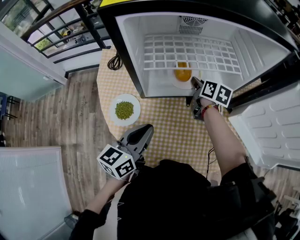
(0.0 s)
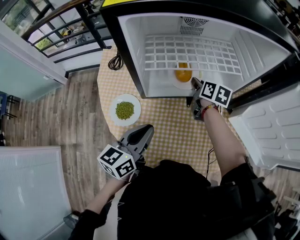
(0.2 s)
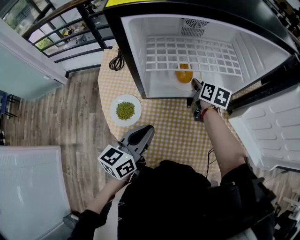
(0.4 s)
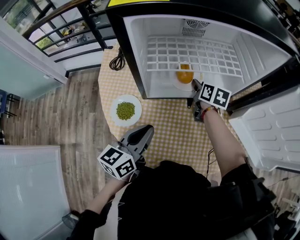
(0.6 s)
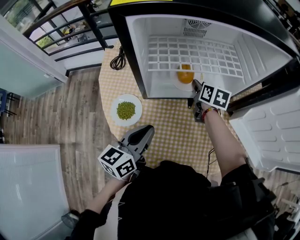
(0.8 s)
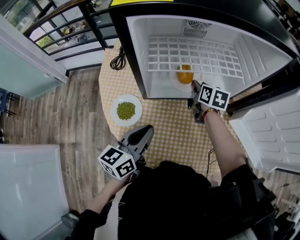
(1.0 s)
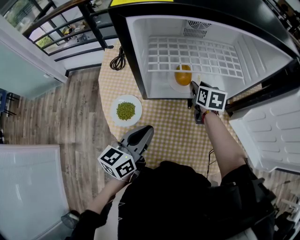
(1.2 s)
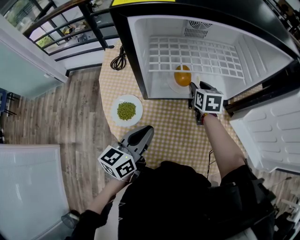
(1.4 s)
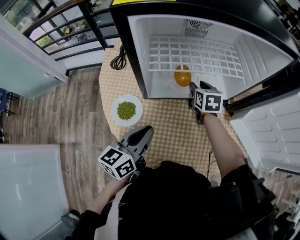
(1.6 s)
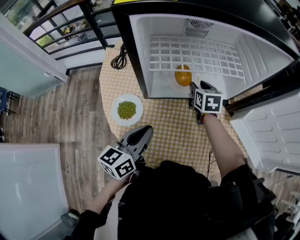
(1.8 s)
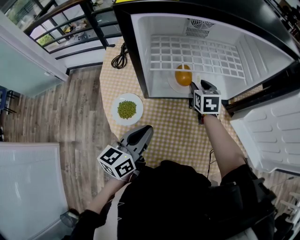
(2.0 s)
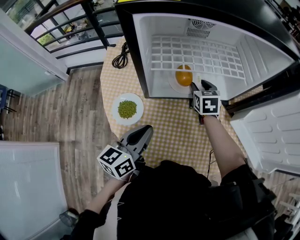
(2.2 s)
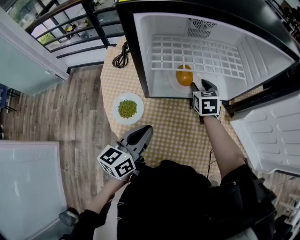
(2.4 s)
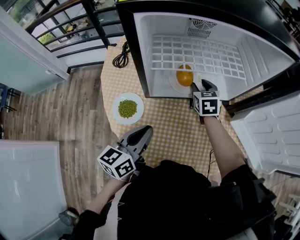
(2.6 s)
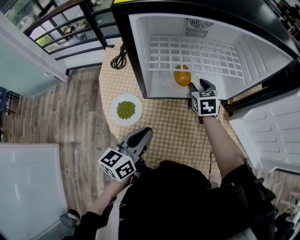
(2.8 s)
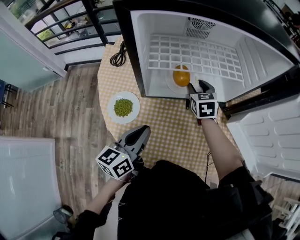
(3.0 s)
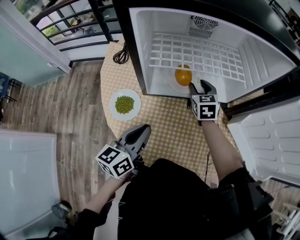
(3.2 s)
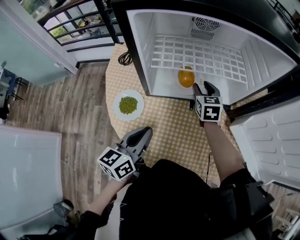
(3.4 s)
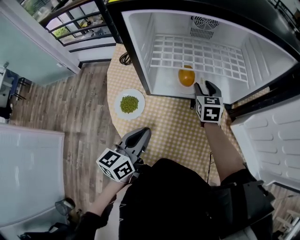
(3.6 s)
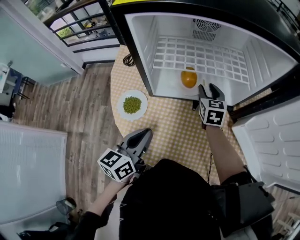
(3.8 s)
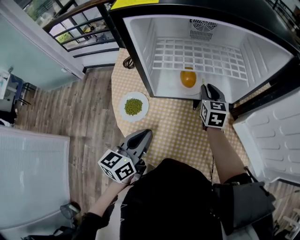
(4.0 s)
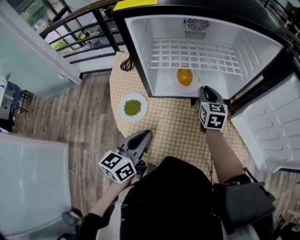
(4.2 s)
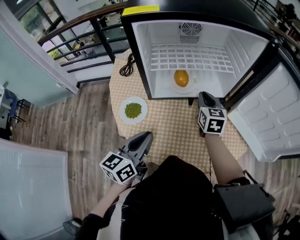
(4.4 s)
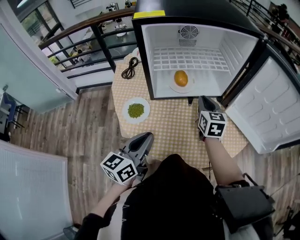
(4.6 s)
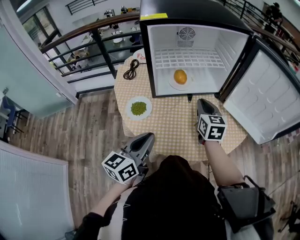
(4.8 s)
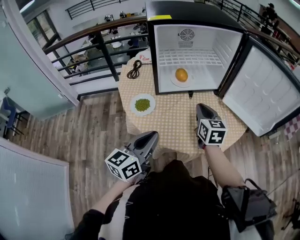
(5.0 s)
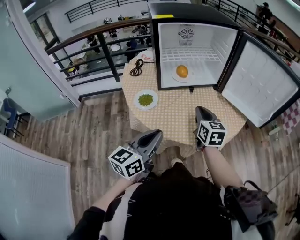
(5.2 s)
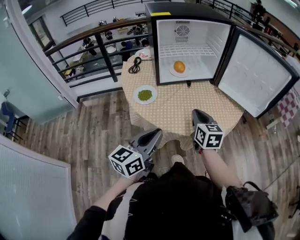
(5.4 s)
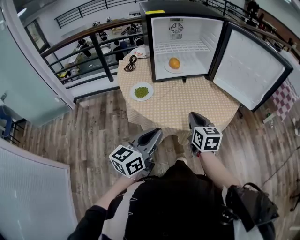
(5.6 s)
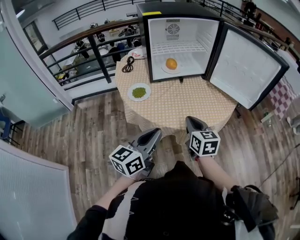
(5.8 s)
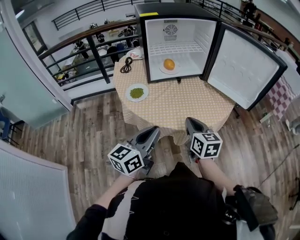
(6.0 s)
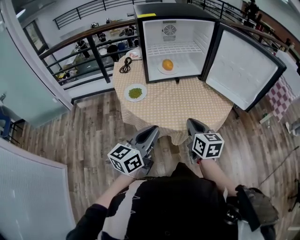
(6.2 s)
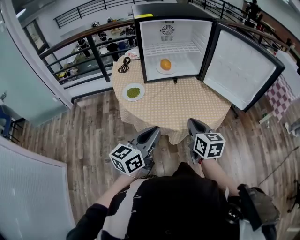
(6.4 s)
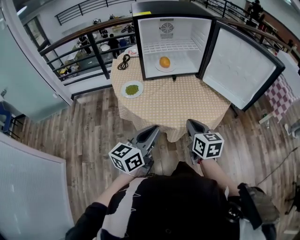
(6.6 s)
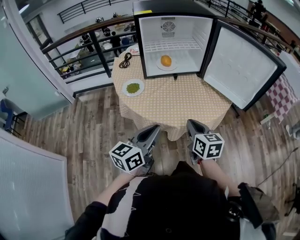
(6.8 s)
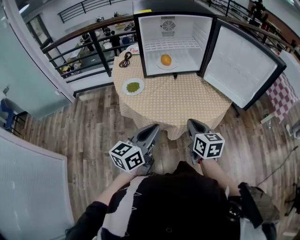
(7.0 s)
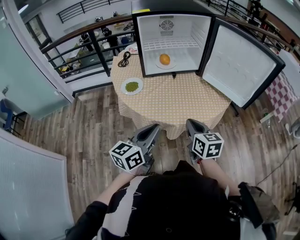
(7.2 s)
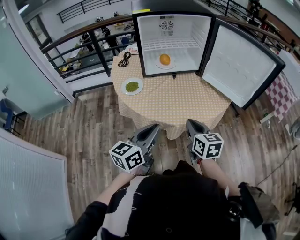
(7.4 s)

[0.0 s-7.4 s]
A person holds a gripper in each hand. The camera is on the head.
0.0 to 1.4 s: The right gripper turns by roughly 30 degrees, and opens its fingers.
1.4 to 3.0 s: The grippers stay close to where they were, moving slightly.
3.0 to 4.4 s: The right gripper heads backward and upward, covering some 10 cm, and closes its fingers. The left gripper goes roughly 5 cm backward.
4.4 to 6.0 s: The left gripper moves backward, about 20 cm, while the right gripper heads backward, covering roughly 40 cm.
6.0 to 7.4 s: The two grippers go approximately 5 cm to the right.

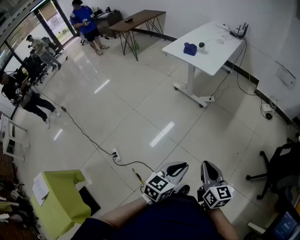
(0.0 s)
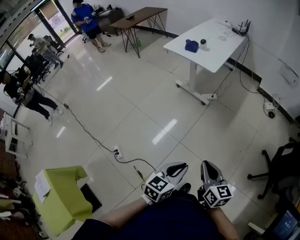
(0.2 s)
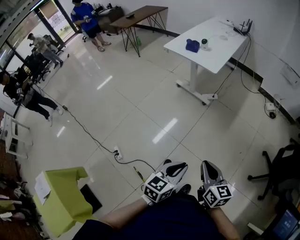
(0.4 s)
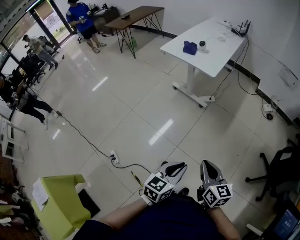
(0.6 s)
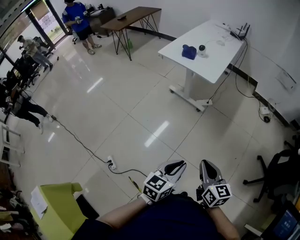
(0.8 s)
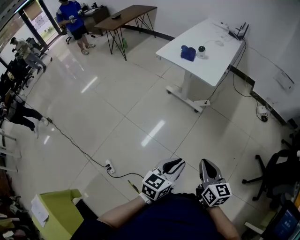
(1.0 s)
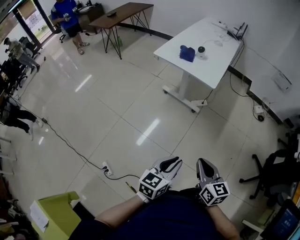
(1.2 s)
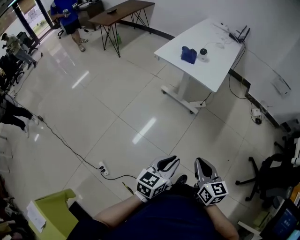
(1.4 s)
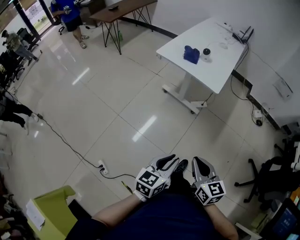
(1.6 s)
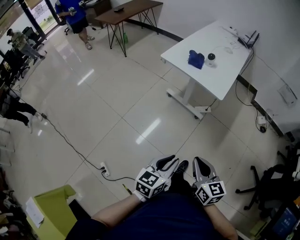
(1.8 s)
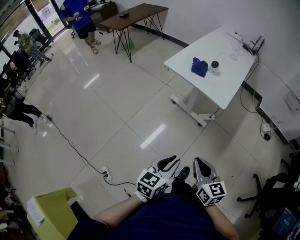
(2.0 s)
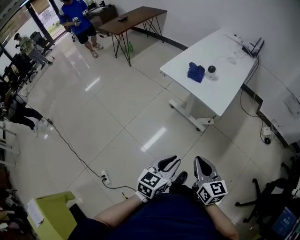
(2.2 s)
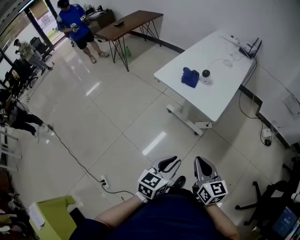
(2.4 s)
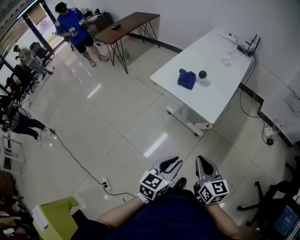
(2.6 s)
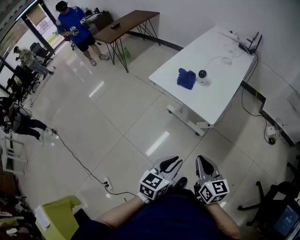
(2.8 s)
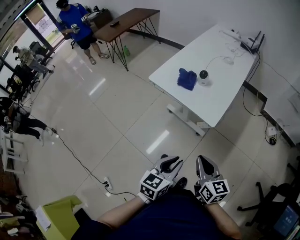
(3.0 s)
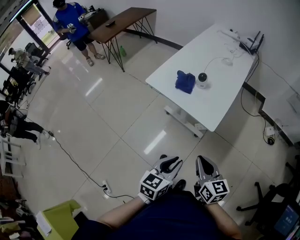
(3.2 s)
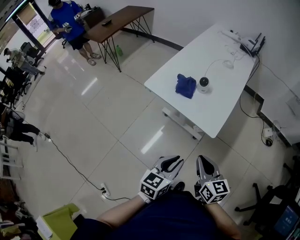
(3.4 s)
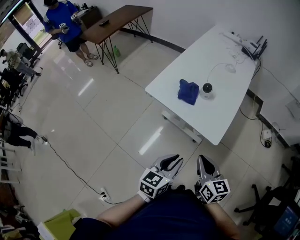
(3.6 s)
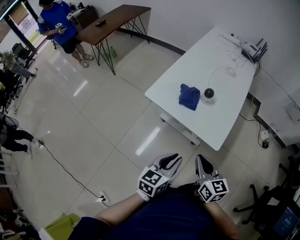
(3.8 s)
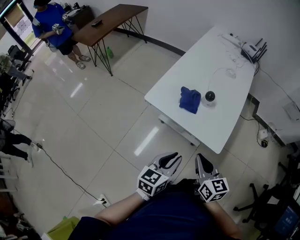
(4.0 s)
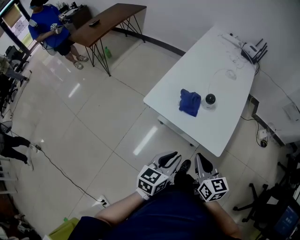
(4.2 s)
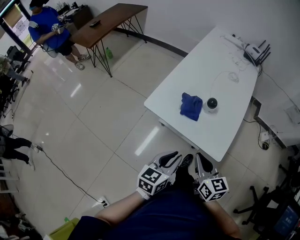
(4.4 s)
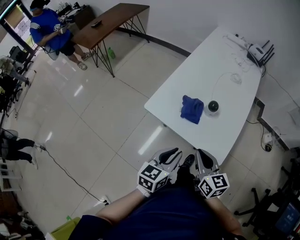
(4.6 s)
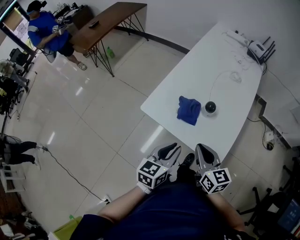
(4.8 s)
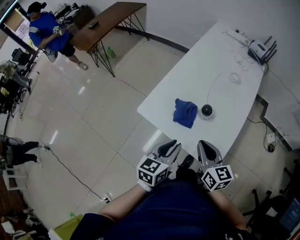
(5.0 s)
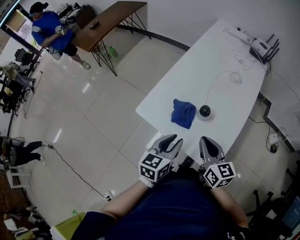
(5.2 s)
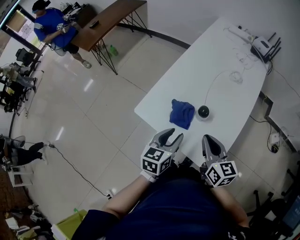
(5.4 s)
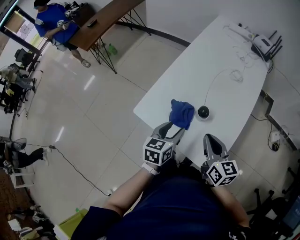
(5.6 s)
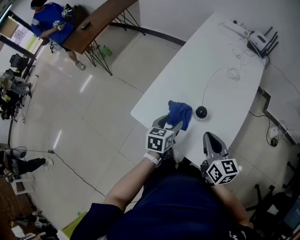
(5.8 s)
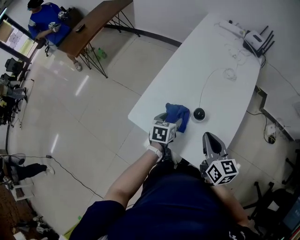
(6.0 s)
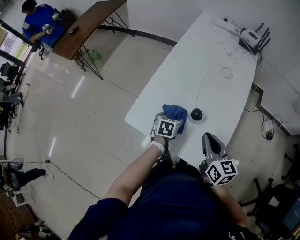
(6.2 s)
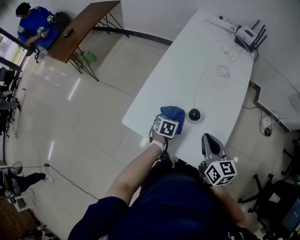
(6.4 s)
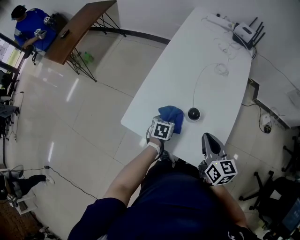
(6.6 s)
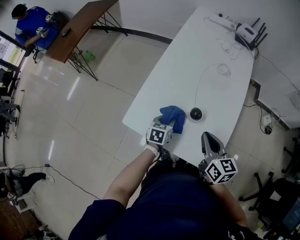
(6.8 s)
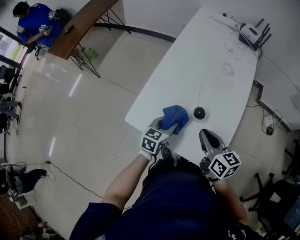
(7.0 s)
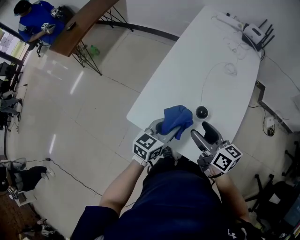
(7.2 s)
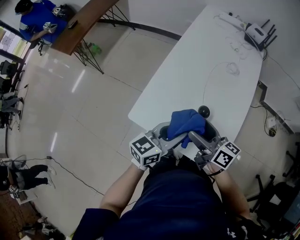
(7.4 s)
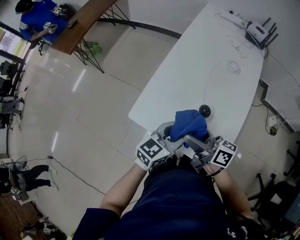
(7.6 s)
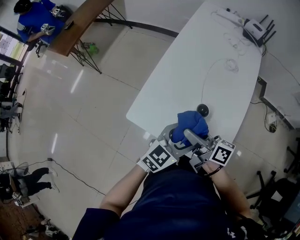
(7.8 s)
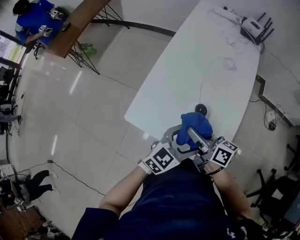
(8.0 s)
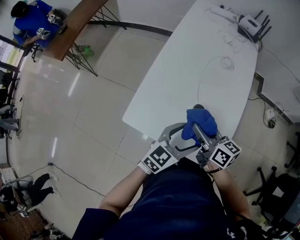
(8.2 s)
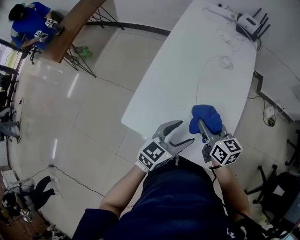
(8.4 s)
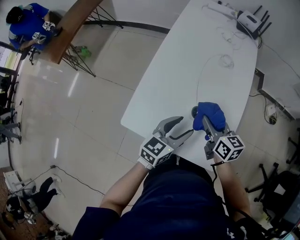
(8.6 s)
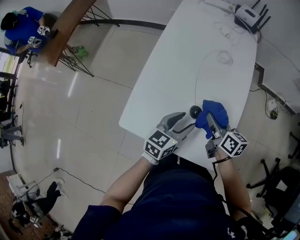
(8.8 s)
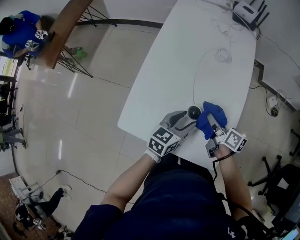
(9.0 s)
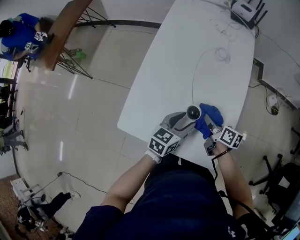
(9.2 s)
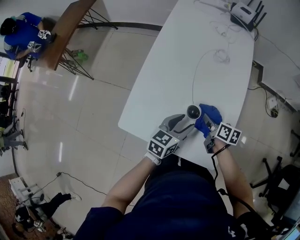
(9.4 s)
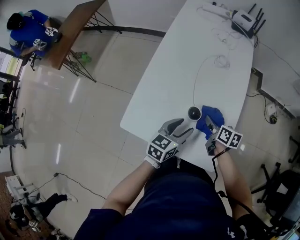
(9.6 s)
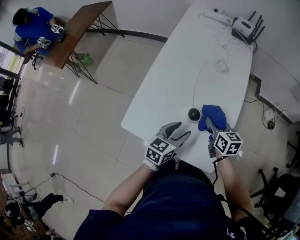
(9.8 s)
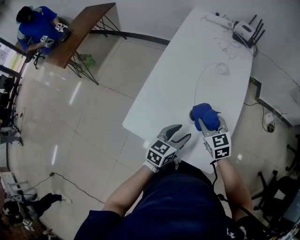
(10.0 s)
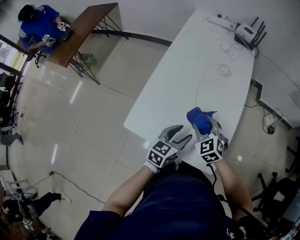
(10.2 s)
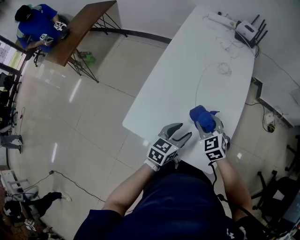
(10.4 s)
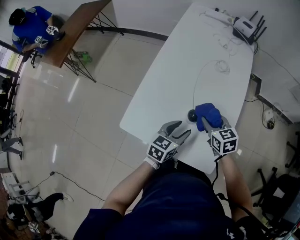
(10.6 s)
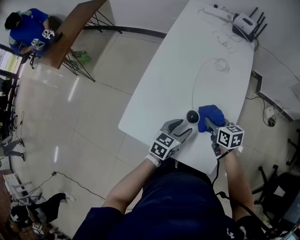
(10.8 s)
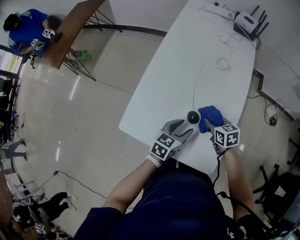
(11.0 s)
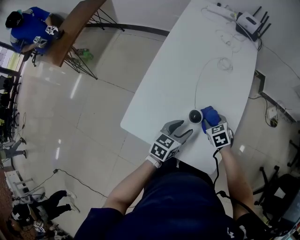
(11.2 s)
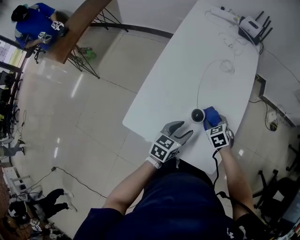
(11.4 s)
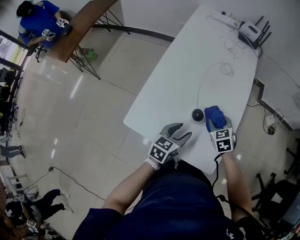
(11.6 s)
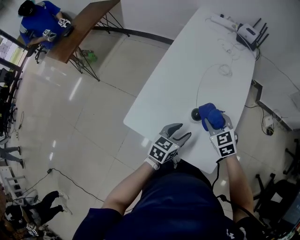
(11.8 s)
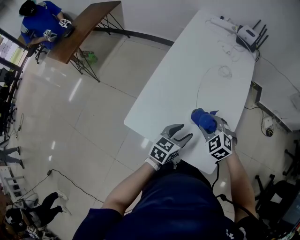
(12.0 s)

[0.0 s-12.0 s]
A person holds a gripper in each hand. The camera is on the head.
0.0 to 1.6 s: Both grippers travel together forward and to the left, approximately 25 cm.
1.6 to 3.0 s: Both grippers travel together forward, about 20 cm.
3.0 to 4.4 s: The grippers both shift forward and to the left by roughly 25 cm.
4.4 to 6.0 s: The right gripper goes roughly 20 cm forward and to the right. Meanwhile the left gripper goes about 30 cm forward and downward, swivels roughly 30 degrees, and opens.
6.0 to 7.6 s: The right gripper travels to the left by approximately 10 cm, turns by roughly 40 degrees, and opens up. Meanwhile the left gripper goes about 15 cm upward and backward, tilts its fingers approximately 30 degrees upward, and closes its fingers.
7.6 to 9.0 s: The left gripper shifts roughly 10 cm downward and forward, and opens, then closes once more. The right gripper moves downward, to the right and forward, about 20 cm, changes its angle by about 30 degrees, and closes.
9.0 to 10.4 s: The right gripper moves to the left, some 5 cm, and twists some 80 degrees counterclockwise, seen from behind.
10.4 to 12.0 s: The right gripper goes downward and returns, some 10 cm each way.

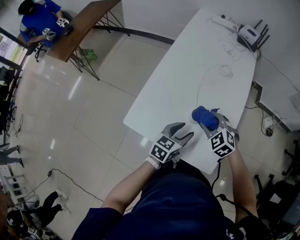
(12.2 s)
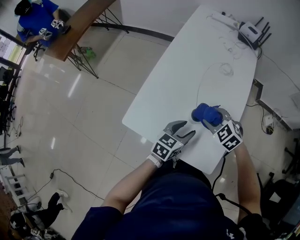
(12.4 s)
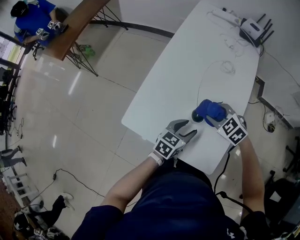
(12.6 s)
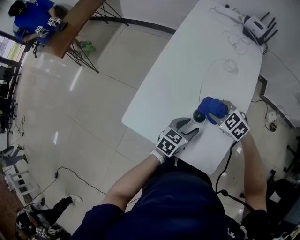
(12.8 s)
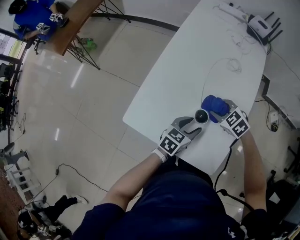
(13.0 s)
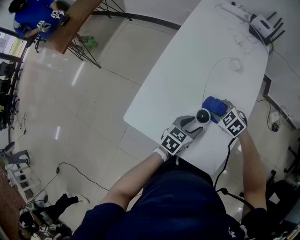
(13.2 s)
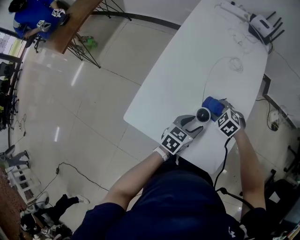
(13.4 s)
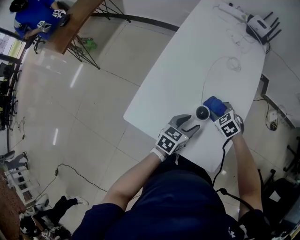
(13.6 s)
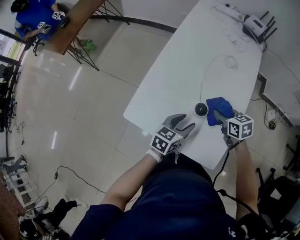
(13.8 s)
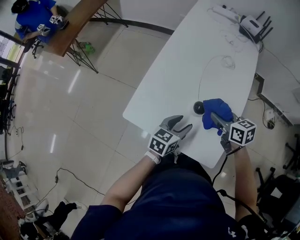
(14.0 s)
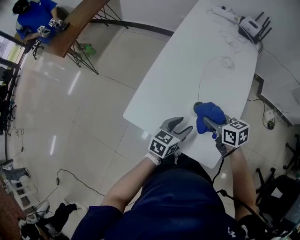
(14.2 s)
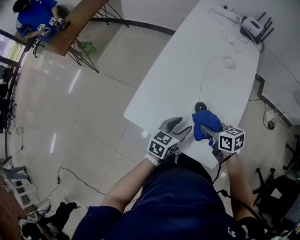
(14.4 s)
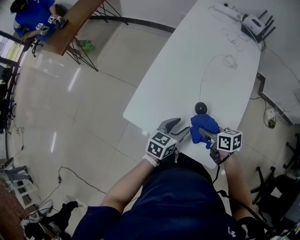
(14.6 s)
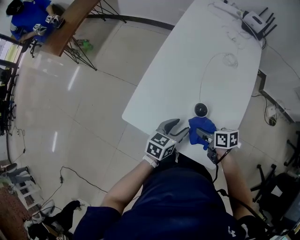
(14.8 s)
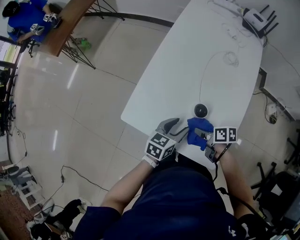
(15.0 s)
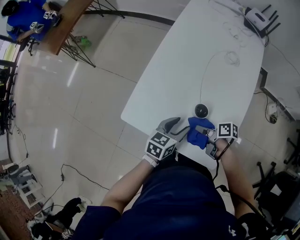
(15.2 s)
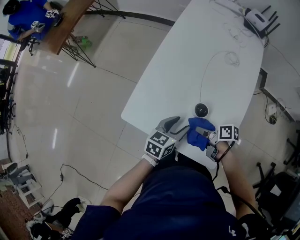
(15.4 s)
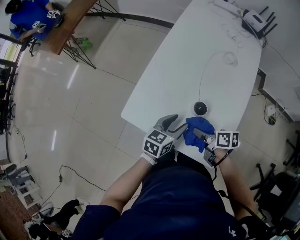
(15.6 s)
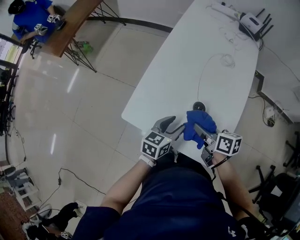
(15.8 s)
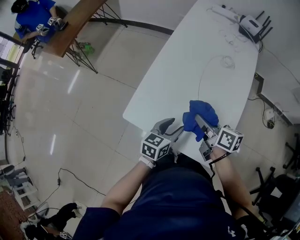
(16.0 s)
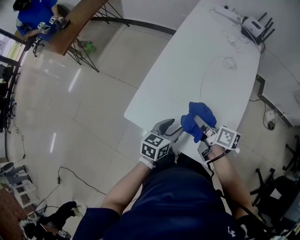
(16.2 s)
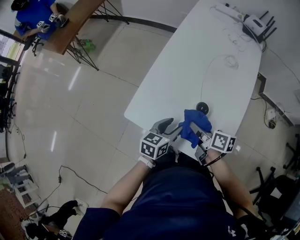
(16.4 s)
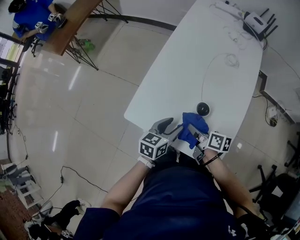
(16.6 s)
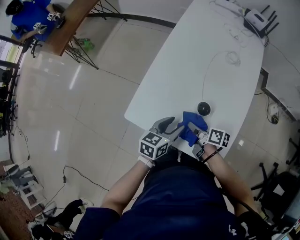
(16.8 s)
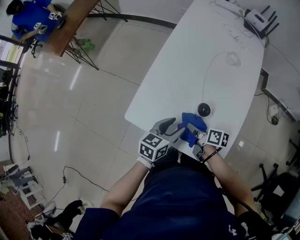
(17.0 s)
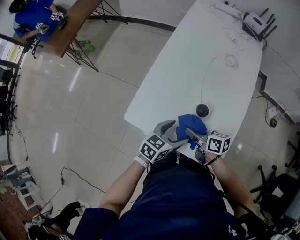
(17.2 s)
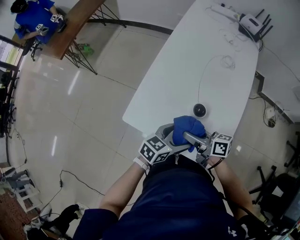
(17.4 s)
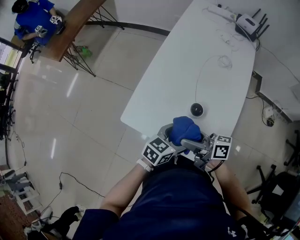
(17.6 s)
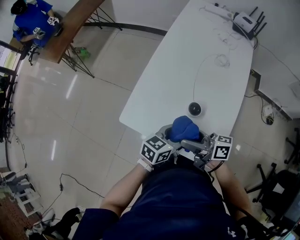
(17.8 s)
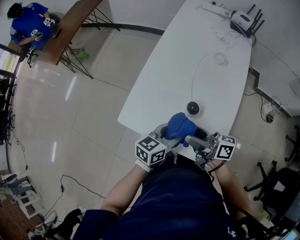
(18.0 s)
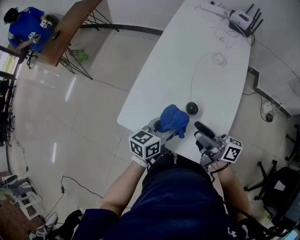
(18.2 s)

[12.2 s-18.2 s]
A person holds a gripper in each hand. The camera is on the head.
12.2 to 13.8 s: The right gripper shifts some 5 cm to the right, and rolls clockwise, seen from behind, by some 50 degrees.
13.8 to 15.2 s: The right gripper is displaced backward, downward and to the left by about 15 cm, and rolls clockwise, seen from behind, by about 50 degrees.
15.2 to 16.6 s: The right gripper goes roughly 5 cm upward, and turns by approximately 20 degrees.
16.6 to 18.2 s: The left gripper goes some 5 cm upward, and opens, then closes once more, while the right gripper is displaced upward by roughly 15 cm, tips its fingers upward by about 30 degrees, and opens its fingers.
